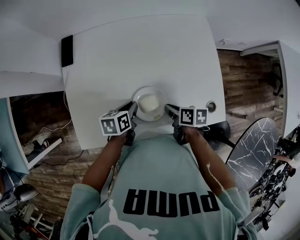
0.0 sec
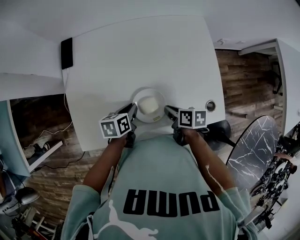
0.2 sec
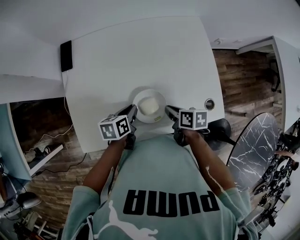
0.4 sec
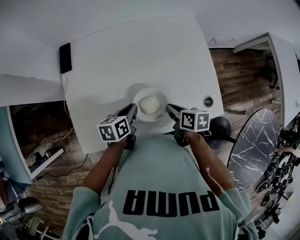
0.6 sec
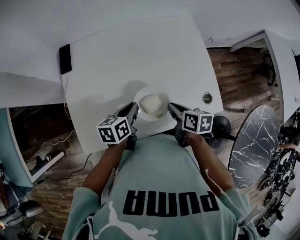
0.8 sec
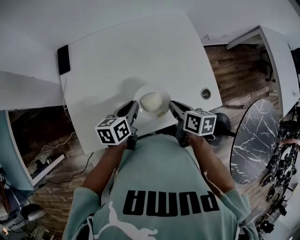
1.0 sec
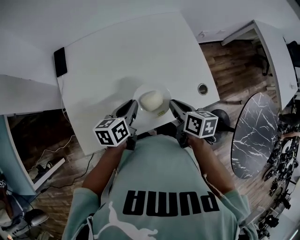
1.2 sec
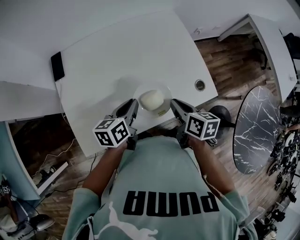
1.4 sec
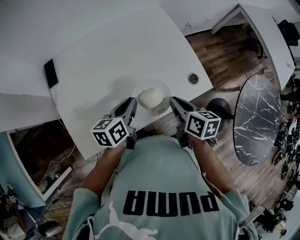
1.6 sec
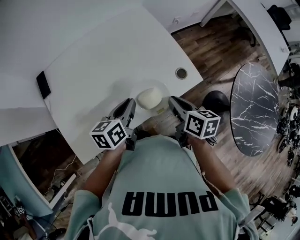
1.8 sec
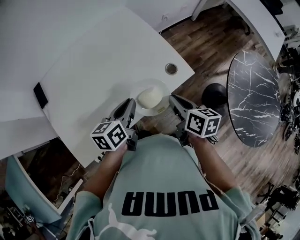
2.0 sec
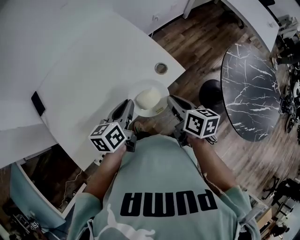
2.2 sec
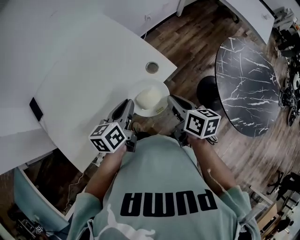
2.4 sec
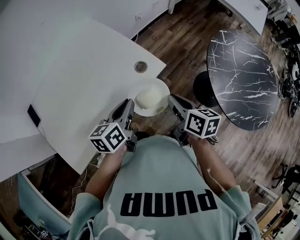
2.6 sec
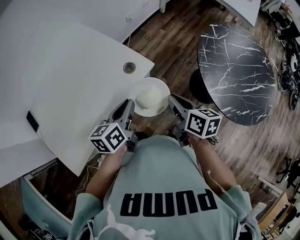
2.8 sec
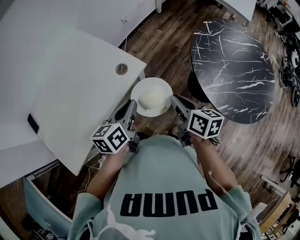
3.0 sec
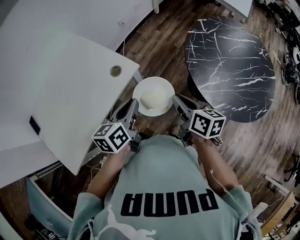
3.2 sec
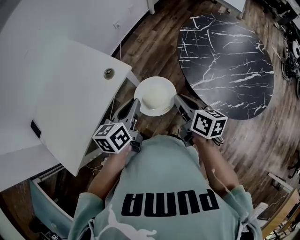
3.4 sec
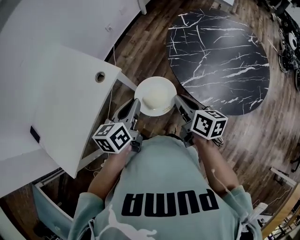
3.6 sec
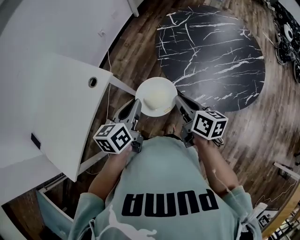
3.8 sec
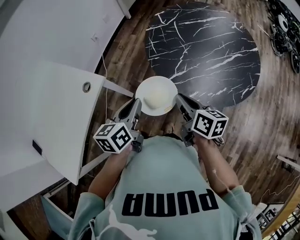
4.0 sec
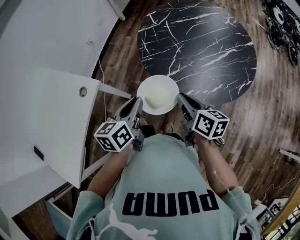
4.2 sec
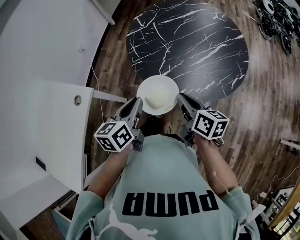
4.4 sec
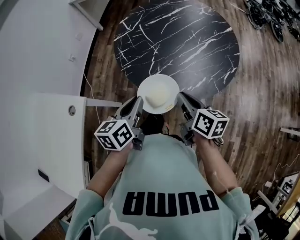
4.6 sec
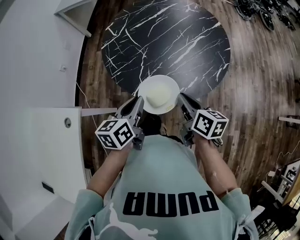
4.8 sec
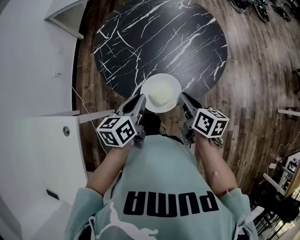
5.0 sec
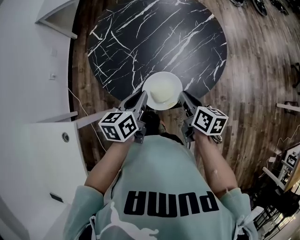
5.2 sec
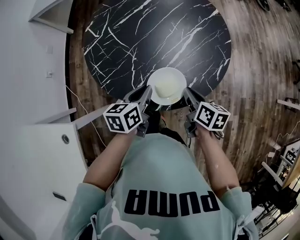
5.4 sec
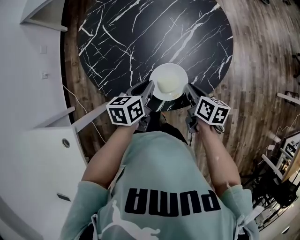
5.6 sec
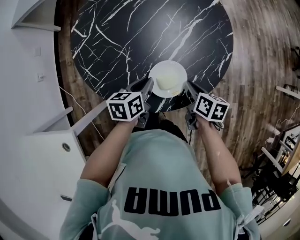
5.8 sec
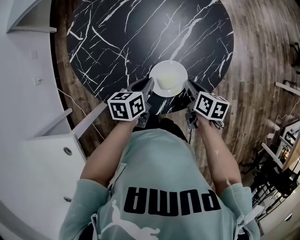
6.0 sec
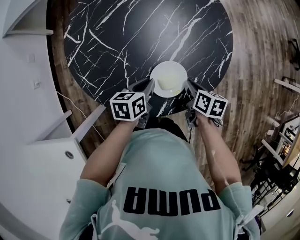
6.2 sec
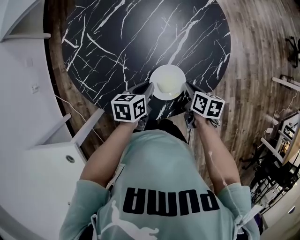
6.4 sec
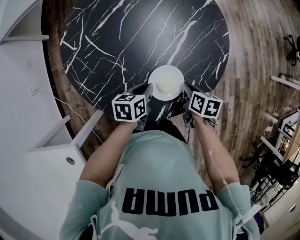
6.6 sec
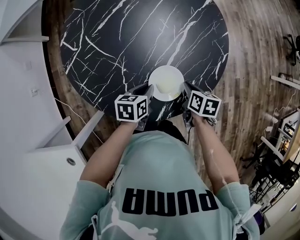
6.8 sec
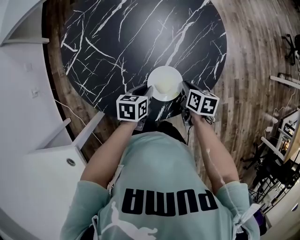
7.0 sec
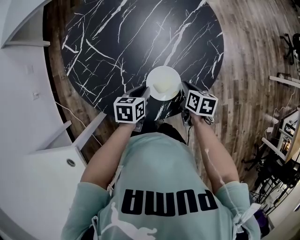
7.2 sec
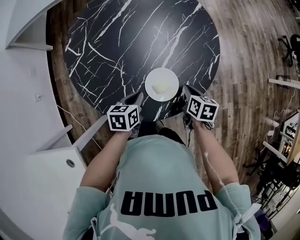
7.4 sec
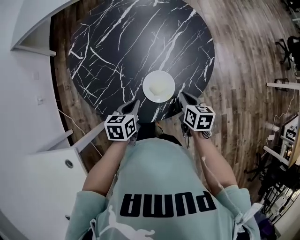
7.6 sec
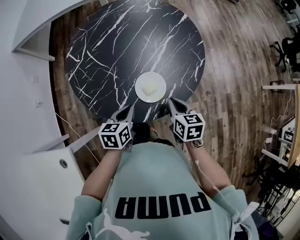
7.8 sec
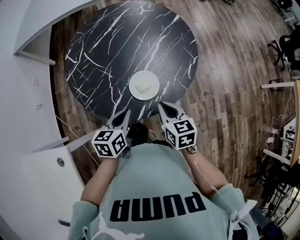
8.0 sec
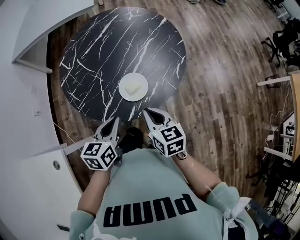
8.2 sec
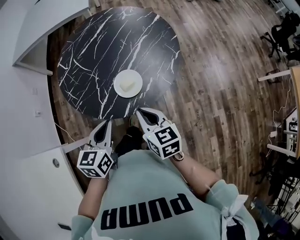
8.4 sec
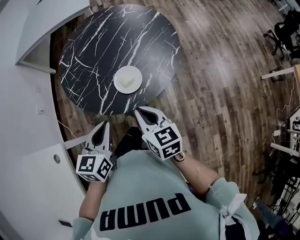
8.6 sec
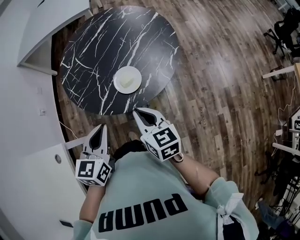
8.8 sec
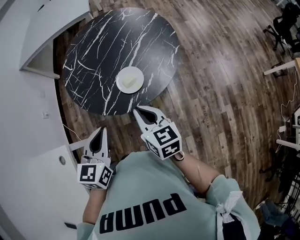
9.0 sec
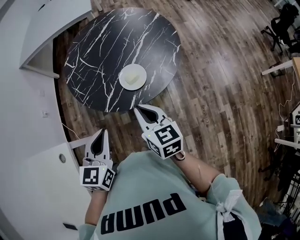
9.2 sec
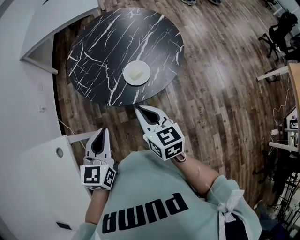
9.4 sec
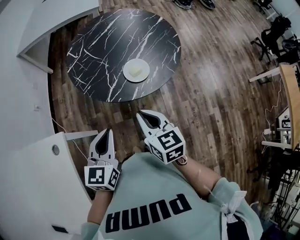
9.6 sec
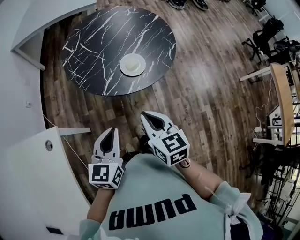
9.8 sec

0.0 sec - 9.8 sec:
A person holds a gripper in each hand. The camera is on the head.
0.0 sec - 1.4 sec: The right gripper is displaced upward and backward by roughly 15 cm, and turns by approximately 30 degrees; the left gripper travels upward by roughly 10 cm, and changes its angle by some 20 degrees.
1.4 sec - 2.8 sec: The two grippers go approximately 30 cm to the right. The right gripper changes its angle by roughly 30 degrees; the left gripper rotates about 20 degrees.
2.8 sec - 4.2 sec: The two grippers go approximately 35 cm to the right. The right gripper changes its angle by some 20 degrees; the left gripper rotates some 20 degrees.
4.2 sec - 5.6 sec: The left gripper moves some 30 cm, and changes its angle by about 40 degrees. Meanwhile the right gripper shifts by roughly 25 cm, and rotates about 40 degrees.
5.6 sec - 7.0 sec: Both grippers move downward, some 10 cm. The left gripper rotates roughly 20 degrees.
7.0 sec - 8.4 sec: The two grippers go about 25 cm upward and backward. The left gripper turns by some 30 degrees. Meanwhile the right gripper angles its fingers upward, by roughly 30 degrees.
8.4 sec - 9.8 sec: The right gripper heads backward, to the left and upward, covering roughly 20 cm. Meanwhile the left gripper travels backward and to the left by roughly 20 cm.

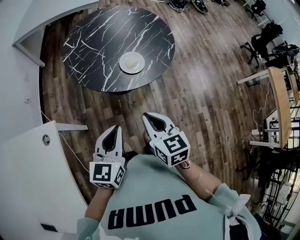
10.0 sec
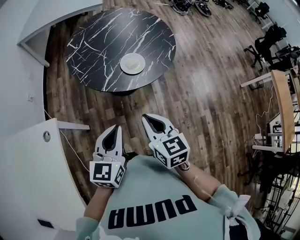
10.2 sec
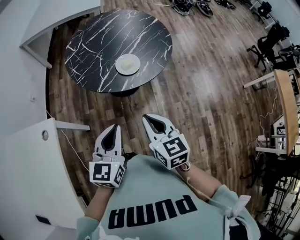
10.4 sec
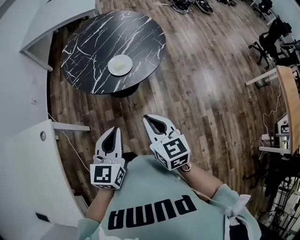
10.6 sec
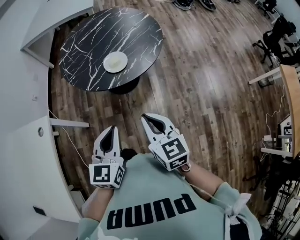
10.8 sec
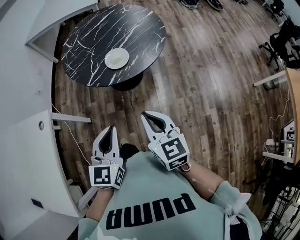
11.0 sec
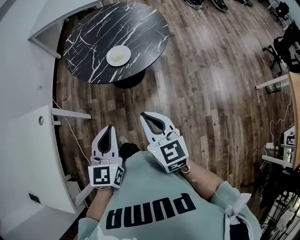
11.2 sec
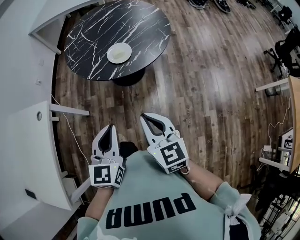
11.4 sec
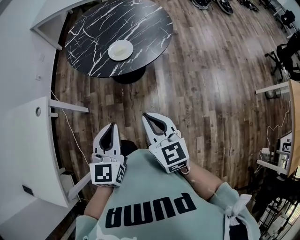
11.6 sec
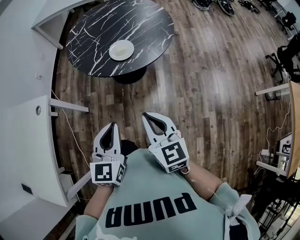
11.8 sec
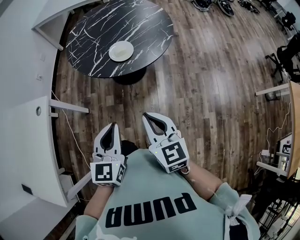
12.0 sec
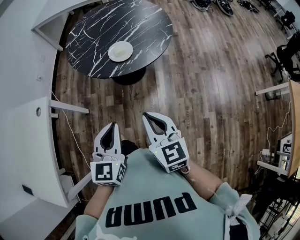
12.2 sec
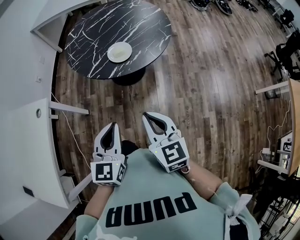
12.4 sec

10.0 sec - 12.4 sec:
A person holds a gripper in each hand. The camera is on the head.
10.0 sec - 11.2 sec: The grippers both shift to the right and backward by some 20 cm.
11.2 sec - 12.4 sec: The grippers make only small movements.

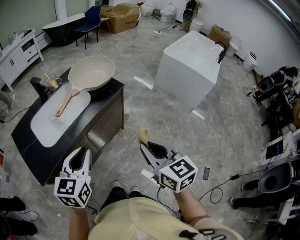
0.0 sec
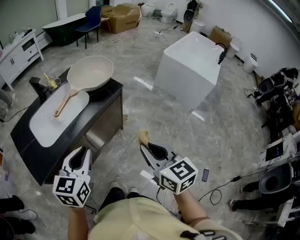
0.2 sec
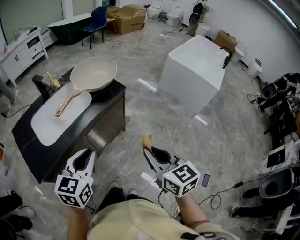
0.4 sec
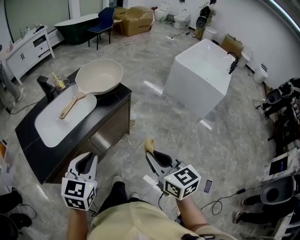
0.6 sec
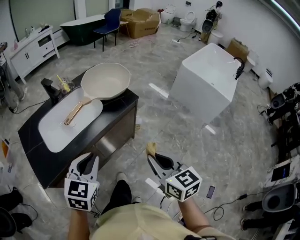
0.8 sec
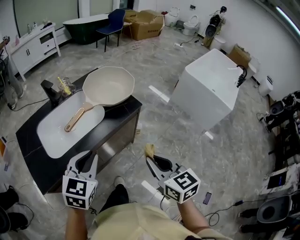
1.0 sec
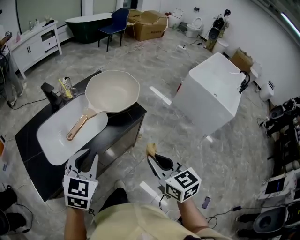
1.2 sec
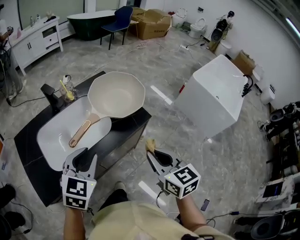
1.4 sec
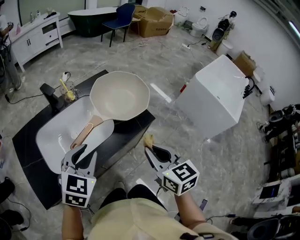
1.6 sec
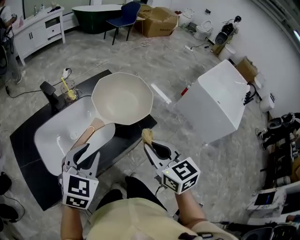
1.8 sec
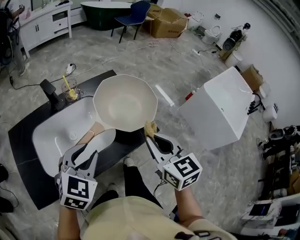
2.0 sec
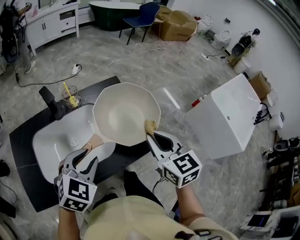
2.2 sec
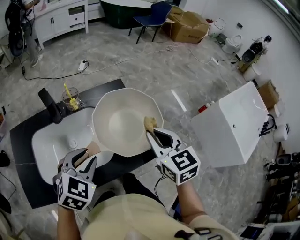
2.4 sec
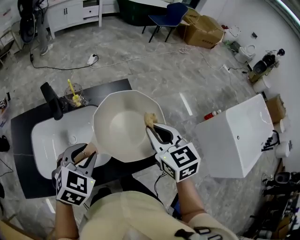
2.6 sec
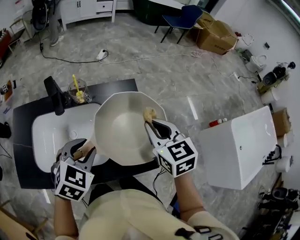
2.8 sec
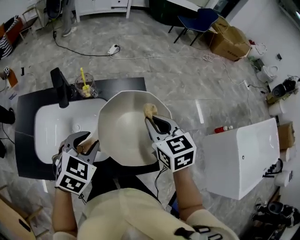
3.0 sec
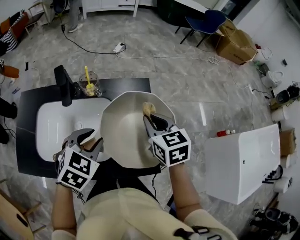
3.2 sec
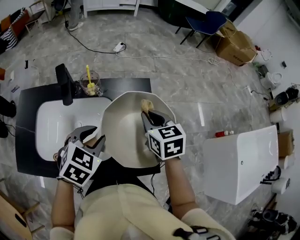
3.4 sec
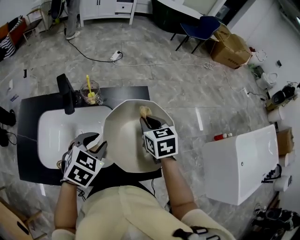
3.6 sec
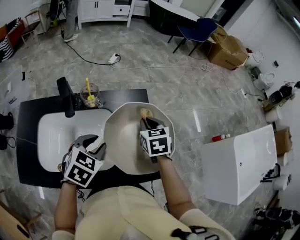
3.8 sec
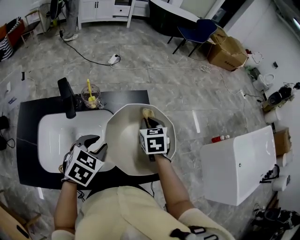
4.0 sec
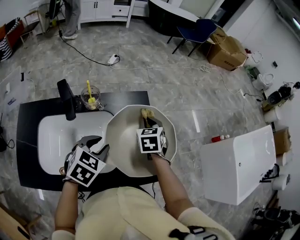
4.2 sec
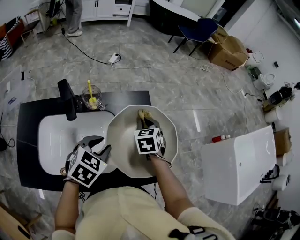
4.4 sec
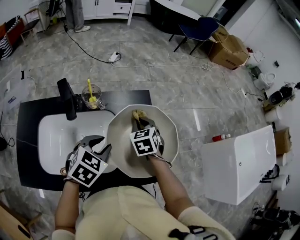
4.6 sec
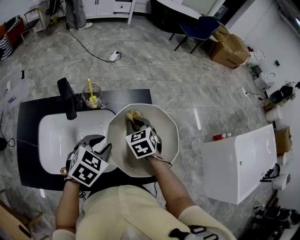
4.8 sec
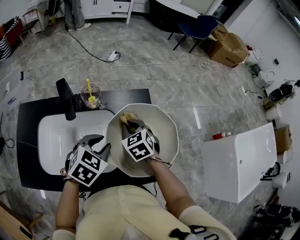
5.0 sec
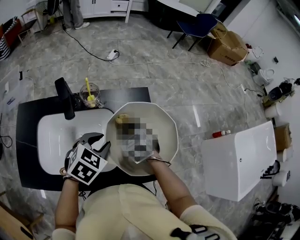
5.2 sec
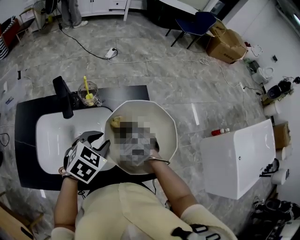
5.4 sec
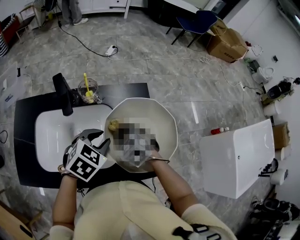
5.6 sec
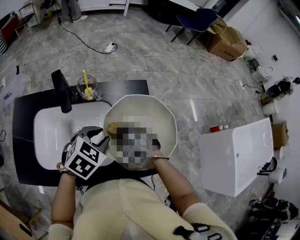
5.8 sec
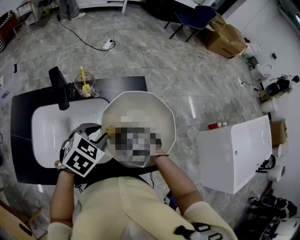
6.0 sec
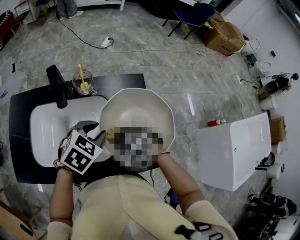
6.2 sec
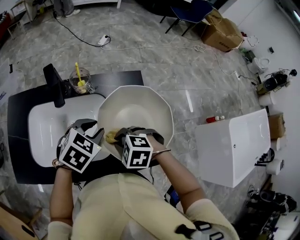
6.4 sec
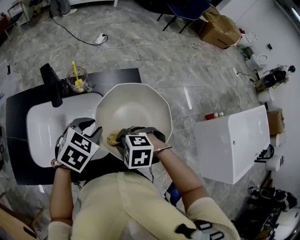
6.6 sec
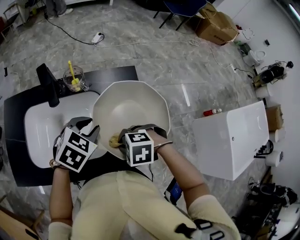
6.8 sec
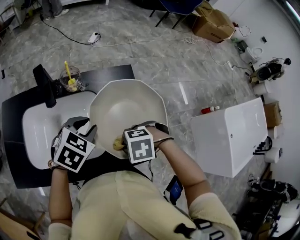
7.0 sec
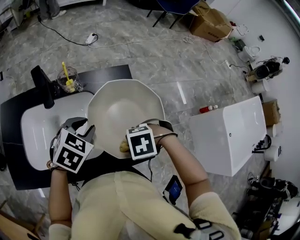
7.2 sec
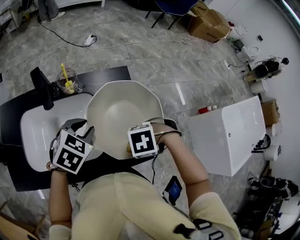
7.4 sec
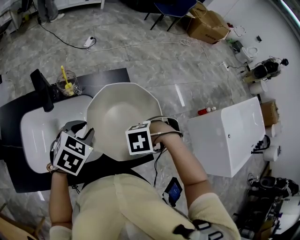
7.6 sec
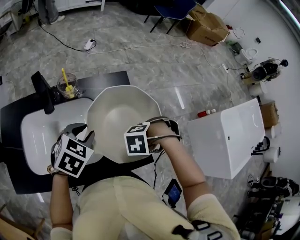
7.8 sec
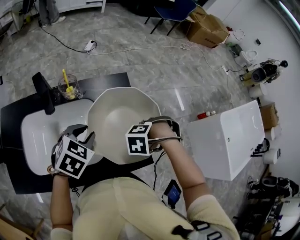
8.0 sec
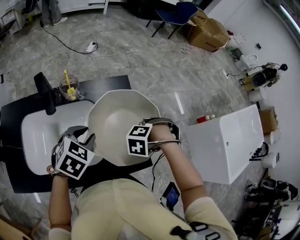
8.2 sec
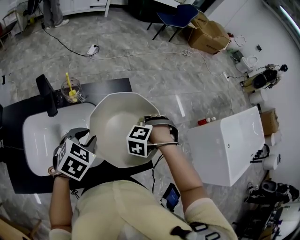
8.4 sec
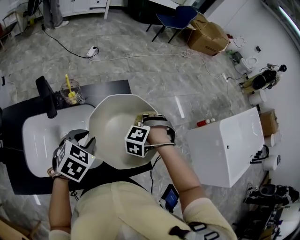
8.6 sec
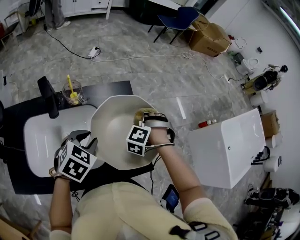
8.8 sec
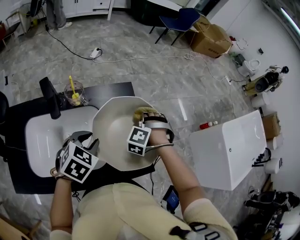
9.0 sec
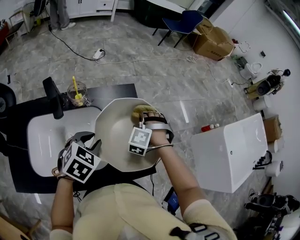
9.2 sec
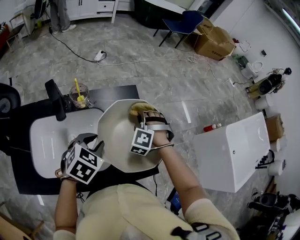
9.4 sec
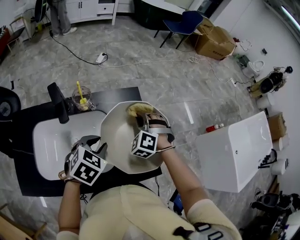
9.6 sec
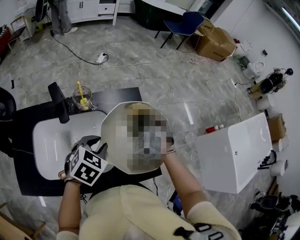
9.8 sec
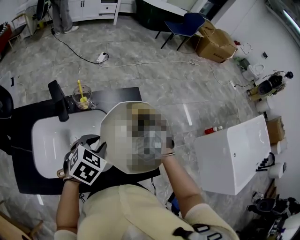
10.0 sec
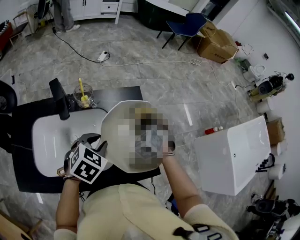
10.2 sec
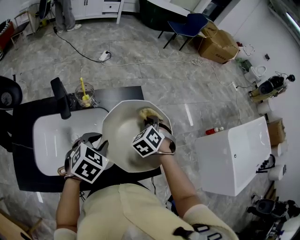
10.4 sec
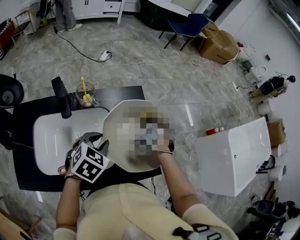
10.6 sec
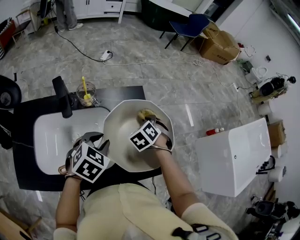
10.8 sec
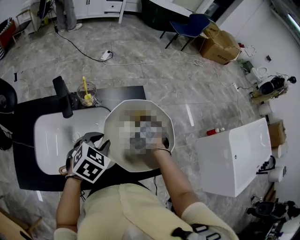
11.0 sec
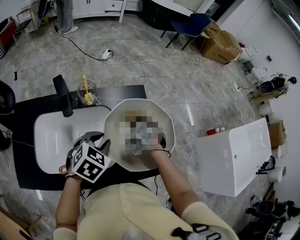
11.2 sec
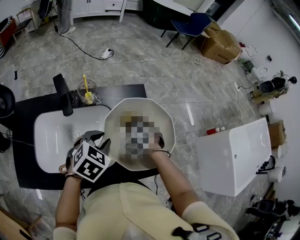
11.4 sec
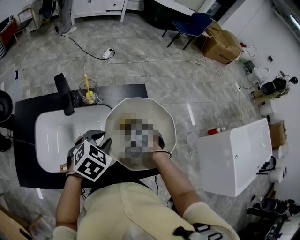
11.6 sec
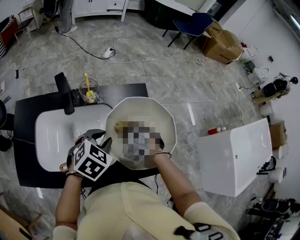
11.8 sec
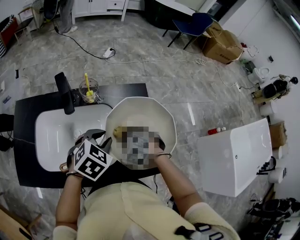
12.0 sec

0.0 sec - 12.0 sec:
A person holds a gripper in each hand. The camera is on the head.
0.0 sec - 1.6 sec: The grippers both shift forward by some 25 cm. The left gripper rotates approximately 20 degrees.
1.6 sec - 3.0 sec: The left gripper moves approximately 20 cm, and turns by approximately 30 degrees, while the right gripper changes place by roughly 35 cm, and swivels about 30 degrees.
3.0 sec - 4.4 sec: The right gripper is displaced downward and forward by approximately 15 cm, and rotates approximately 20 degrees.
4.4 sec - 6.0 sec: The right gripper moves some 15 cm, and turns by about 60 degrees.
6.0 sec - 7.6 sec: The right gripper changes place by some 15 cm, and changes its angle by approximately 50 degrees.
7.6 sec - 9.0 sec: The right gripper shifts by roughly 20 cm, and turns by approximately 60 degrees.
9.0 sec - 10.4 sec: The right gripper rotates roughly 40 degrees.
10.4 sec - 12.0 sec: The right gripper moves about 15 cm, and rotates some 40 degrees.
